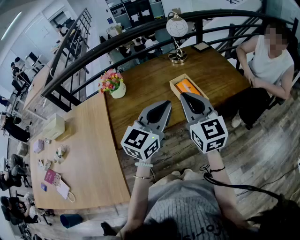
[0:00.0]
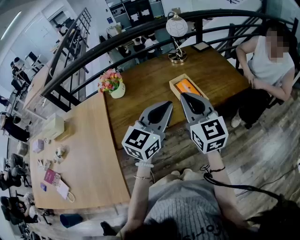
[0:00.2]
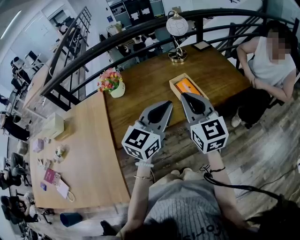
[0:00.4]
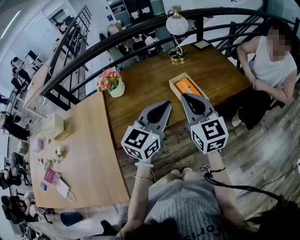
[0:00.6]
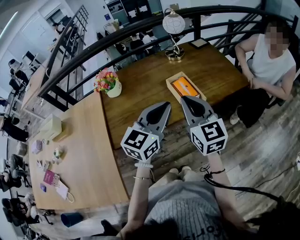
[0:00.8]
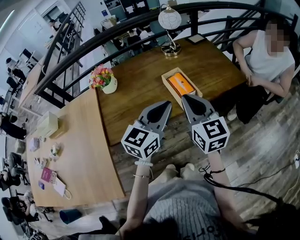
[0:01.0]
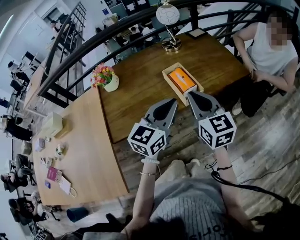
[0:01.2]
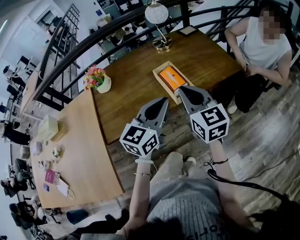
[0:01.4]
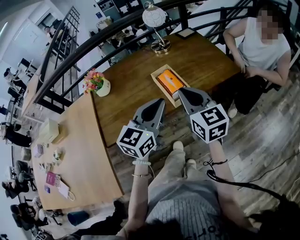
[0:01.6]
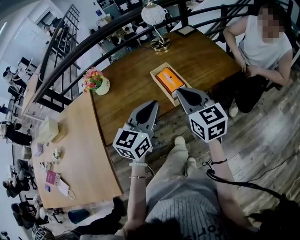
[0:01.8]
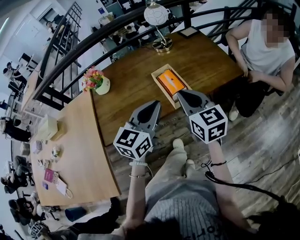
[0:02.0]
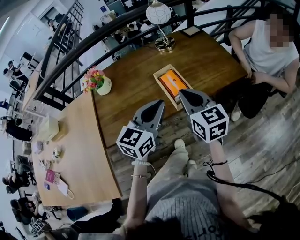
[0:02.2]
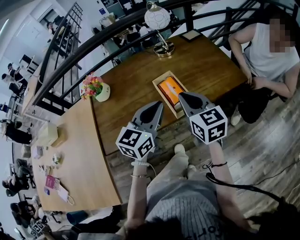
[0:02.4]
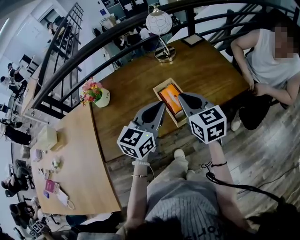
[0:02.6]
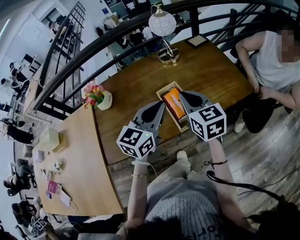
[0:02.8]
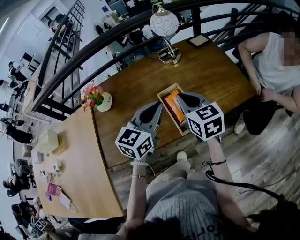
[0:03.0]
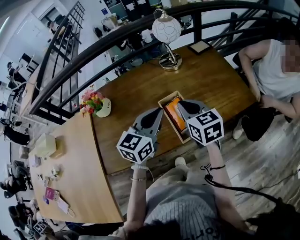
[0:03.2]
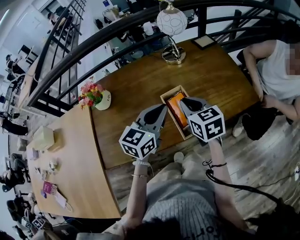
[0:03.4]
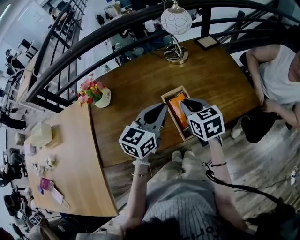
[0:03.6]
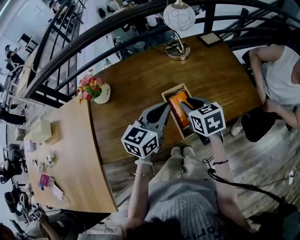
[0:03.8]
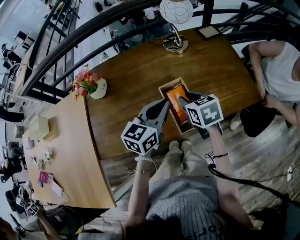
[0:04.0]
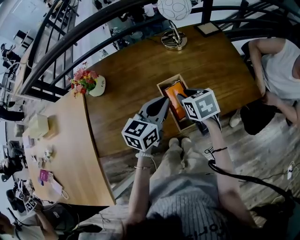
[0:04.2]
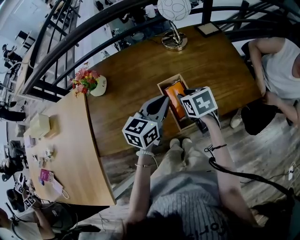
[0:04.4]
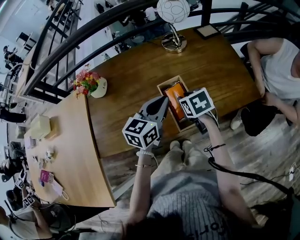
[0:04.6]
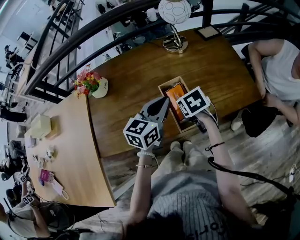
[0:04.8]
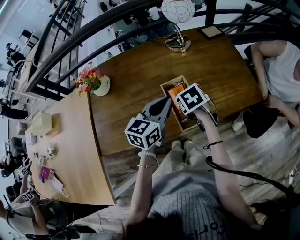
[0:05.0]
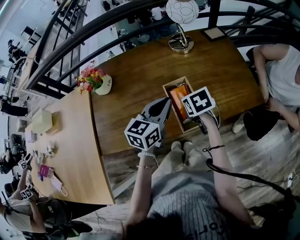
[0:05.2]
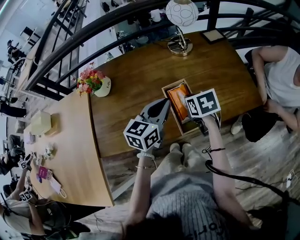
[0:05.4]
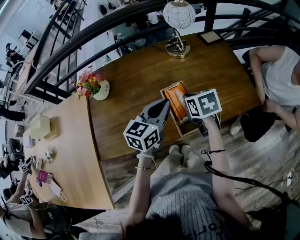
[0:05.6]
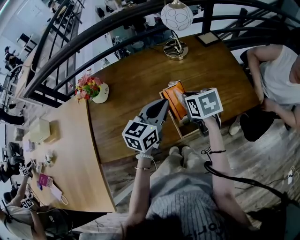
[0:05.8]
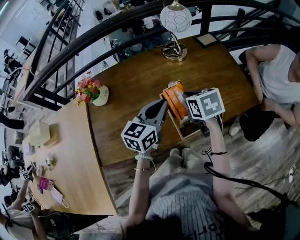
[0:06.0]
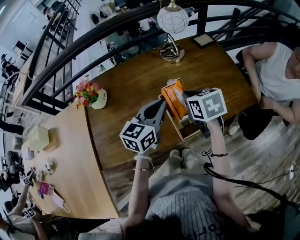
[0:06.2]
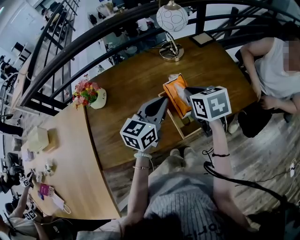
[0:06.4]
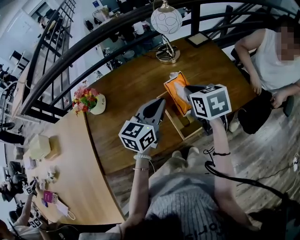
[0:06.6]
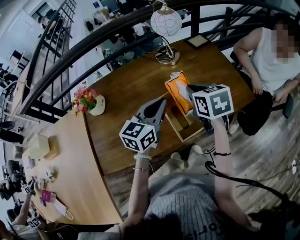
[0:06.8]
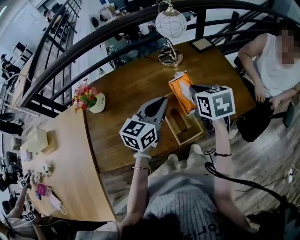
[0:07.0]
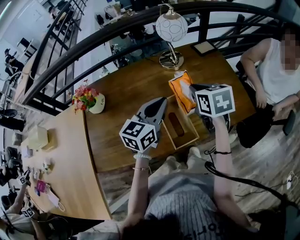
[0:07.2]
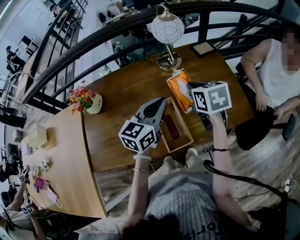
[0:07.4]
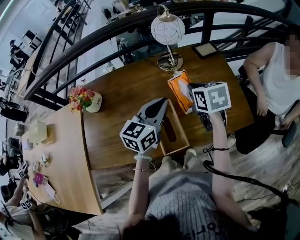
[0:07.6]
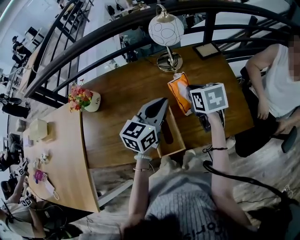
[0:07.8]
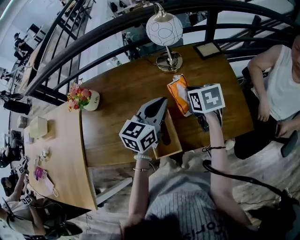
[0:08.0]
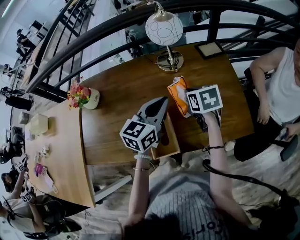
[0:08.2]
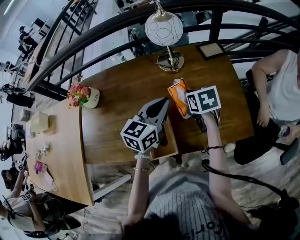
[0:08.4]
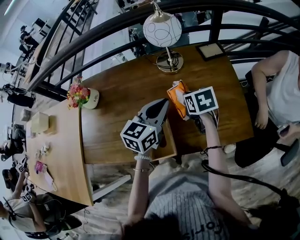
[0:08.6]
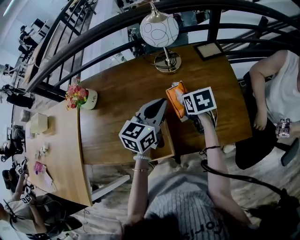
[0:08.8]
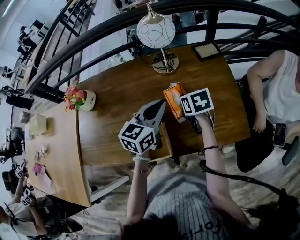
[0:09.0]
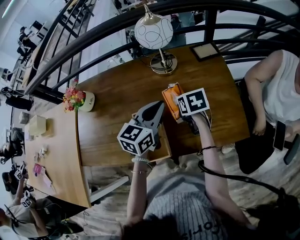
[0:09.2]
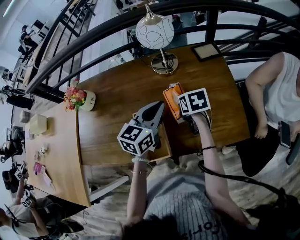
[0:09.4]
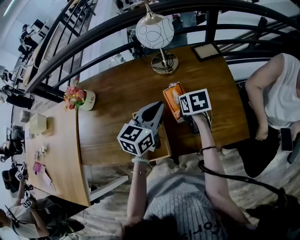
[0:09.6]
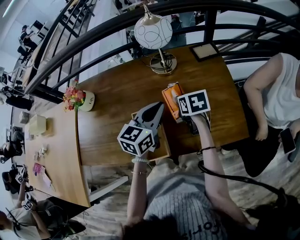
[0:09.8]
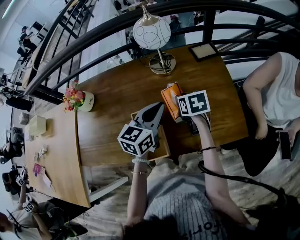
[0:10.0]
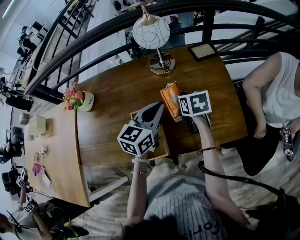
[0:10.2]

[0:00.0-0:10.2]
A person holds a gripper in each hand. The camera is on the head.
0.0 to 1.4 s: Both grippers travel together to the right, roughly 5 cm.
1.4 to 3.0 s: Both grippers move forward, roughly 15 cm.
3.0 to 4.4 s: The left gripper goes roughly 5 cm downward. The right gripper shifts approximately 10 cm downward, and angles its fingers downward, by roughly 30 degrees.
4.4 to 5.8 s: There are only small adjustments of the grippers.
5.8 to 7.2 s: The left gripper changes place by approximately 5 cm. The right gripper moves upward and forward, about 10 cm.
7.2 to 8.8 s: The left gripper shifts roughly 10 cm to the right and forward; the right gripper moves downward, forward and to the right, approximately 15 cm.
8.8 to 10.2 s: There are only small adjustments of the grippers.

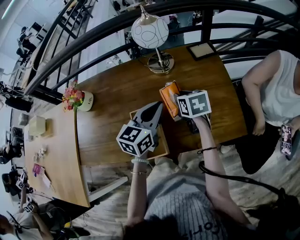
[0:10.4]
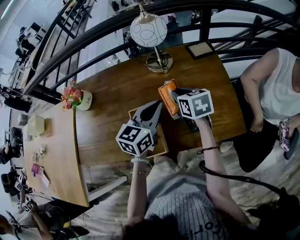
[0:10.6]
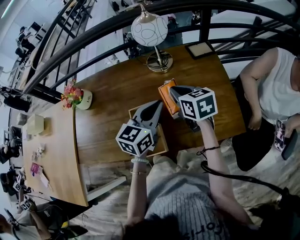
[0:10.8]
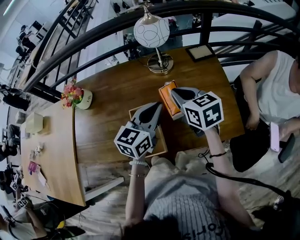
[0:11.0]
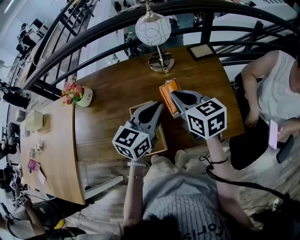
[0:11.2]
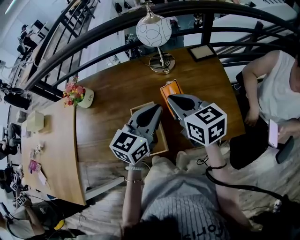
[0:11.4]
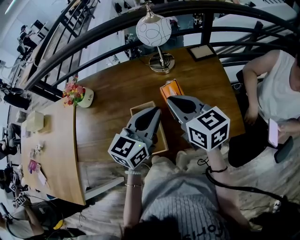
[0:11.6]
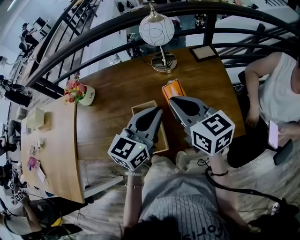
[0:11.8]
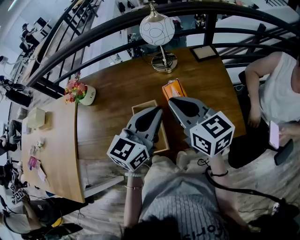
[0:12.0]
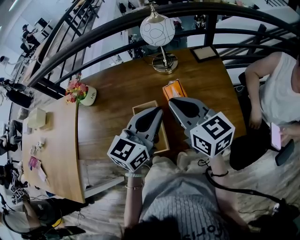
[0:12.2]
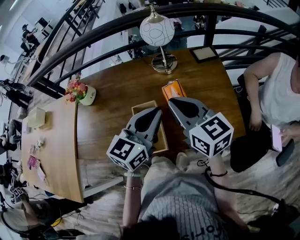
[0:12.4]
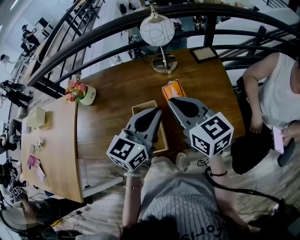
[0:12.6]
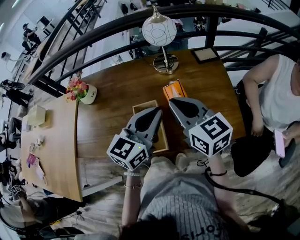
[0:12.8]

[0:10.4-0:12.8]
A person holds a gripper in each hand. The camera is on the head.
10.4 to 11.6 s: The right gripper moves upward and backward, about 15 cm, and swivels approximately 30 degrees; the left gripper moves some 5 cm.
11.6 to 12.8 s: The grippers stay close to where they were, moving slightly.

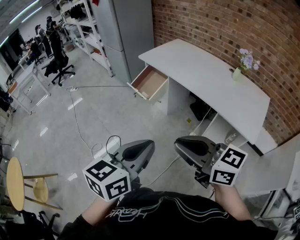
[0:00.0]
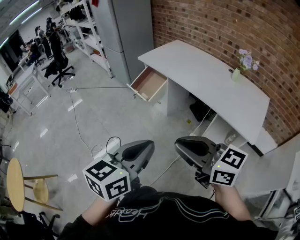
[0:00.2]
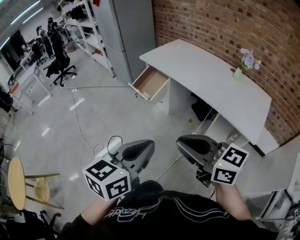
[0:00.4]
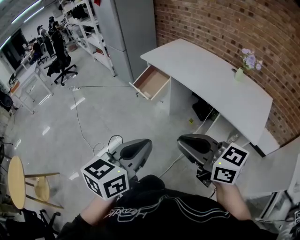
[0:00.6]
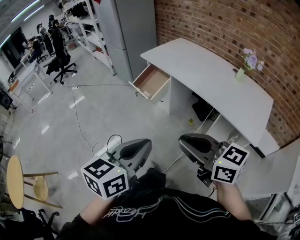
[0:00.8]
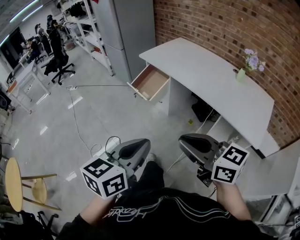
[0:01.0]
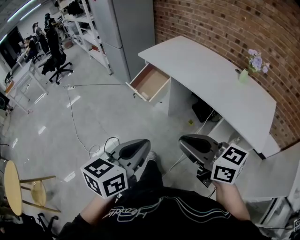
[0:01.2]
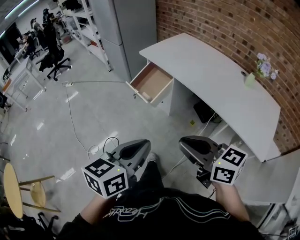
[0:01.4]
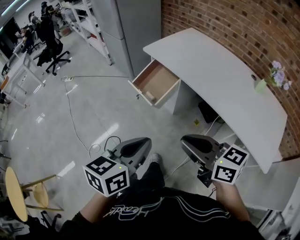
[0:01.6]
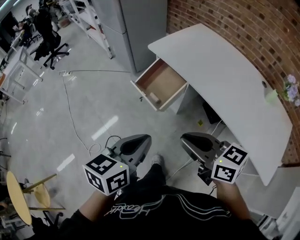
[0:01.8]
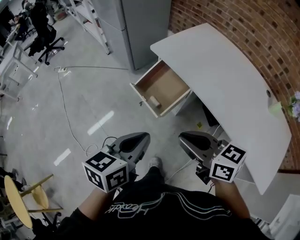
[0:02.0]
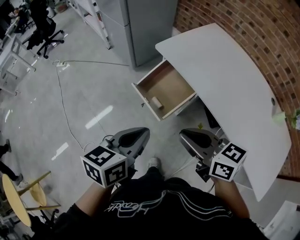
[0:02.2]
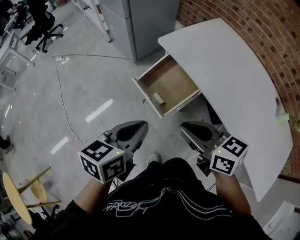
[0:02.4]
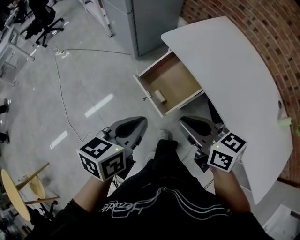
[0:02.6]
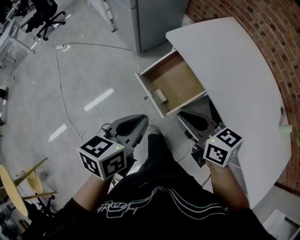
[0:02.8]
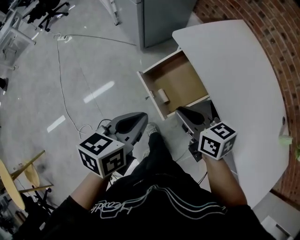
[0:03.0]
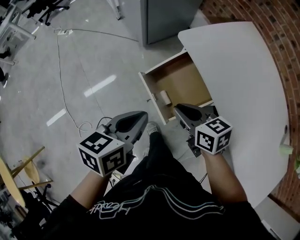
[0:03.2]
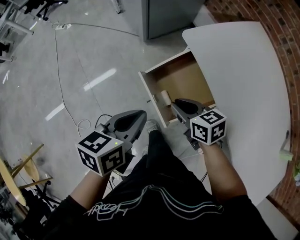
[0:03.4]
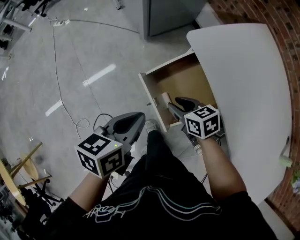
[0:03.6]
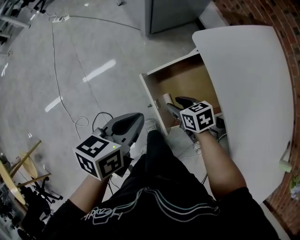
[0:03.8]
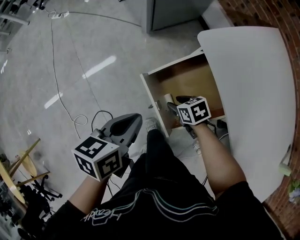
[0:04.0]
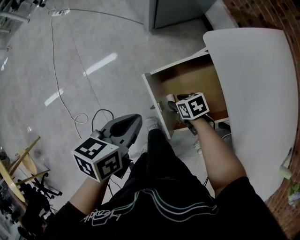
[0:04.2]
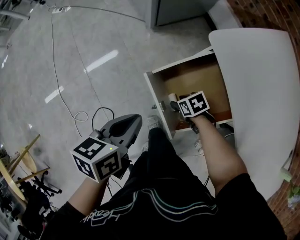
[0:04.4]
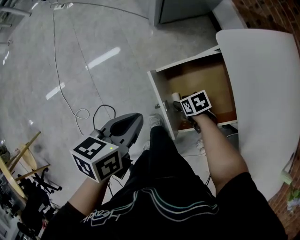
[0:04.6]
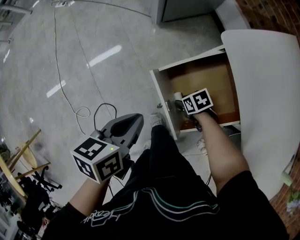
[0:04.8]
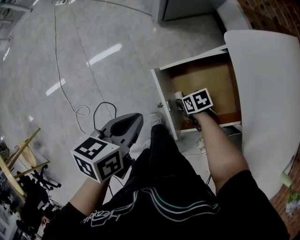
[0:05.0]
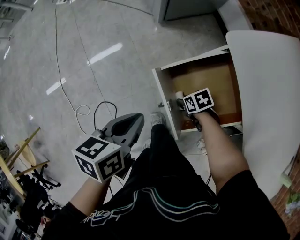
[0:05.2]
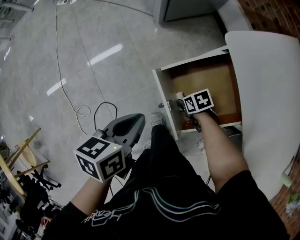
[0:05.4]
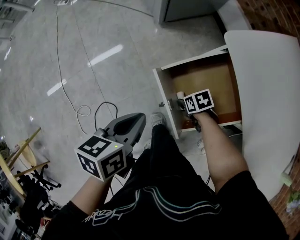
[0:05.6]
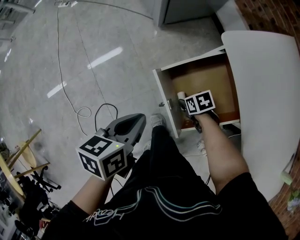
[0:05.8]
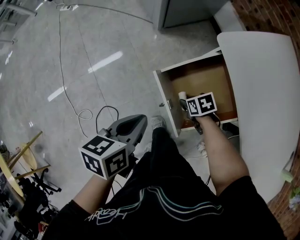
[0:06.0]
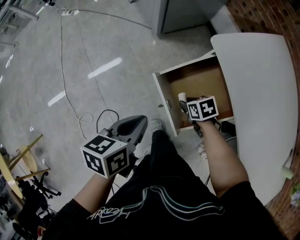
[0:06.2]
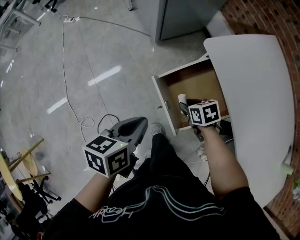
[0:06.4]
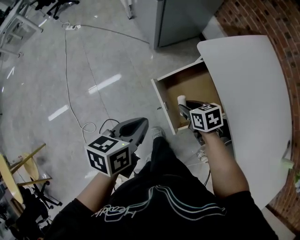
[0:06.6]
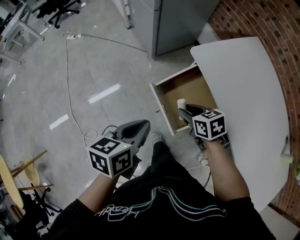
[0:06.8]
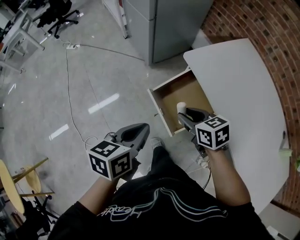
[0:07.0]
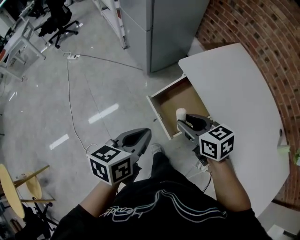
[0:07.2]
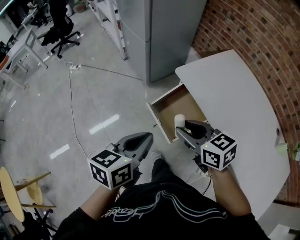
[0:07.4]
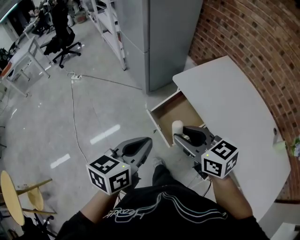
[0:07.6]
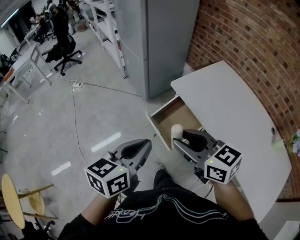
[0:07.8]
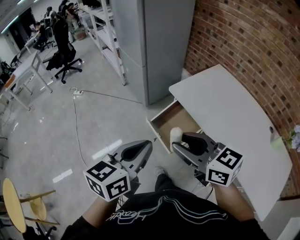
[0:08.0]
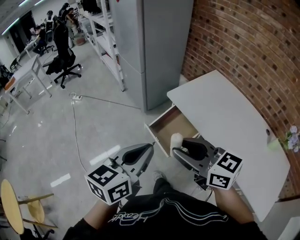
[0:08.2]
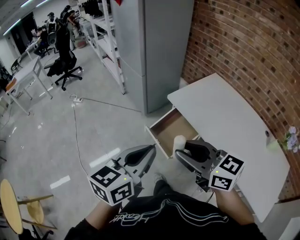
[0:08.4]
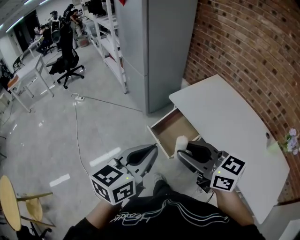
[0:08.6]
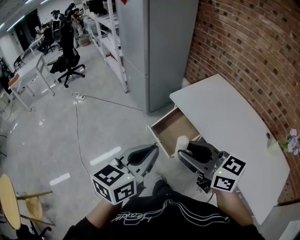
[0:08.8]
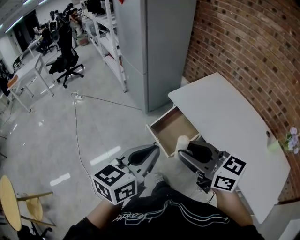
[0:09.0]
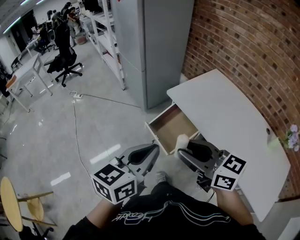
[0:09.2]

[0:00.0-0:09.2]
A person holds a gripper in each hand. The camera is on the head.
0.0 to 1.6 s: The grippers both shift forward by approximately 30 cm.
1.6 to 3.0 s: Both grippers are carried forward, some 40 cm. The right gripper is displaced downward by some 20 cm.
3.0 to 4.6 s: The right gripper travels downward by about 40 cm, angles its fingers downward, by some 40 degrees, and opens up. Meanwhile the left gripper travels downward by approximately 15 cm.
4.6 to 6.2 s: The right gripper heads upward, covering about 10 cm.
6.2 to 7.6 s: The left gripper is displaced upward and backward by roughly 30 cm, and changes its angle by about 30 degrees, while the right gripper moves upward and backward, some 50 cm, and angles its fingers upward, by about 40 degrees.
7.6 to 9.2 s: The left gripper moves upward and backward, roughly 10 cm; the right gripper heads backward and upward, covering about 15 cm.

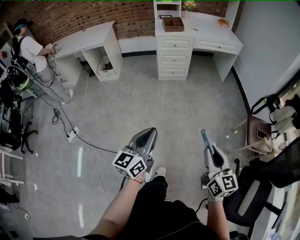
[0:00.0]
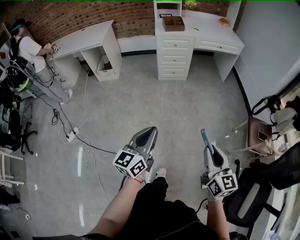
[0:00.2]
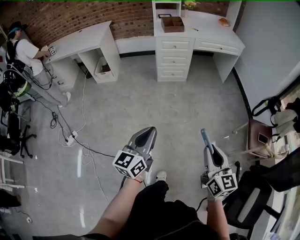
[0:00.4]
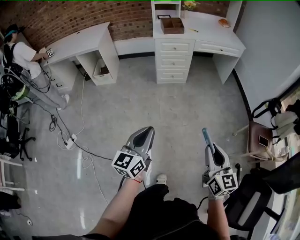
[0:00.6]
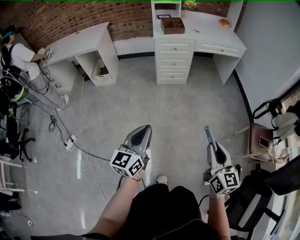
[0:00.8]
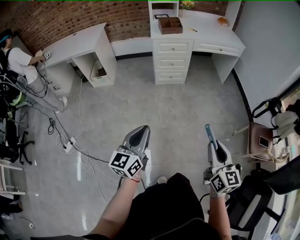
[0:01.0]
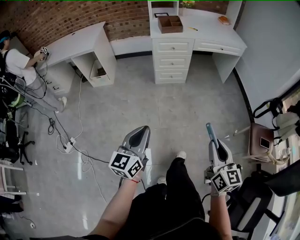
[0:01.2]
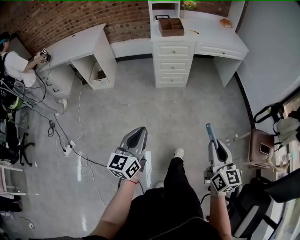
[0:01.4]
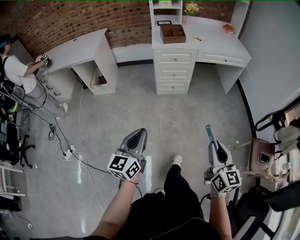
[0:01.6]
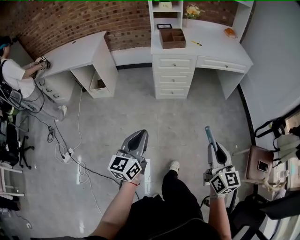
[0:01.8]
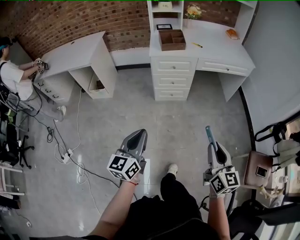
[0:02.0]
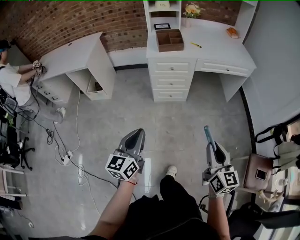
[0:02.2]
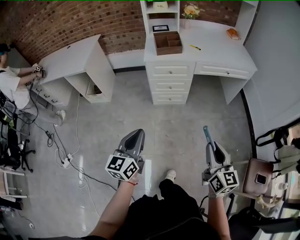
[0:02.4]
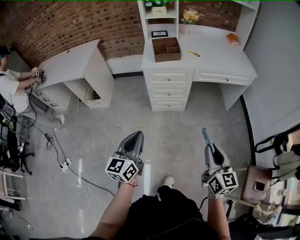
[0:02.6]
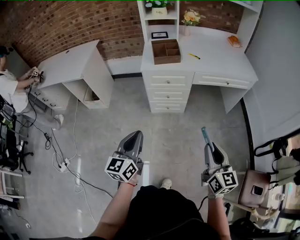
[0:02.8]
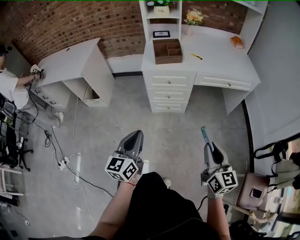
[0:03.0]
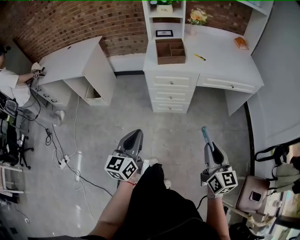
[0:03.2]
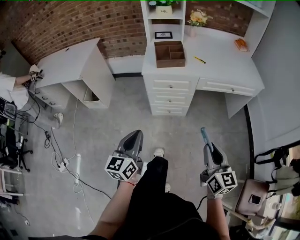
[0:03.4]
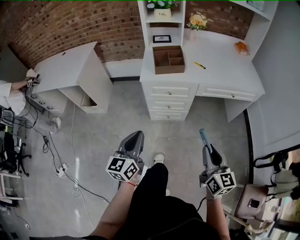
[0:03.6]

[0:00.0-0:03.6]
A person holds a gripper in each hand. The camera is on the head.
0.0 to 1.8 s: Both grippers move forward, approximately 30 cm.
1.8 to 3.6 s: The two grippers go about 30 cm forward.
